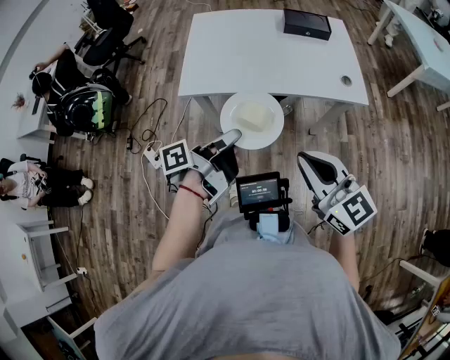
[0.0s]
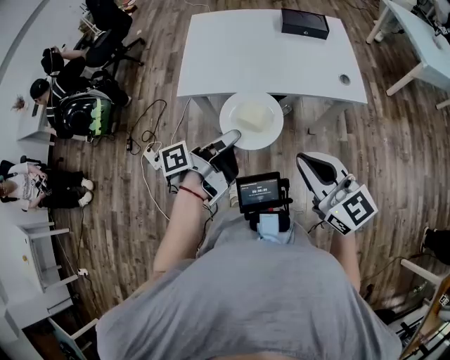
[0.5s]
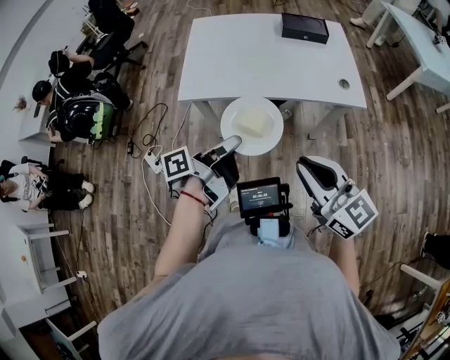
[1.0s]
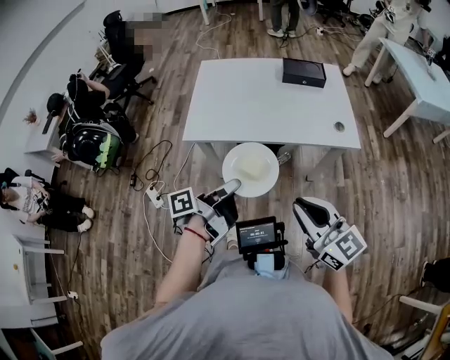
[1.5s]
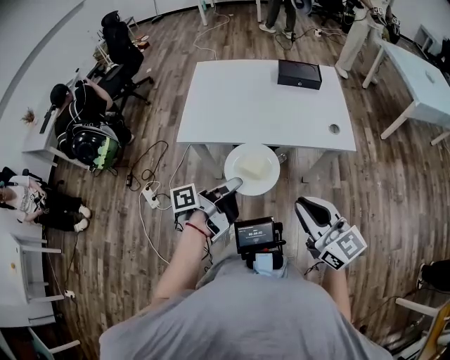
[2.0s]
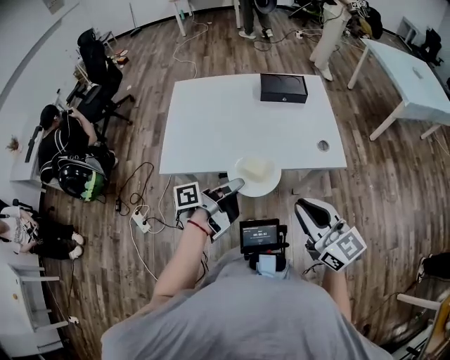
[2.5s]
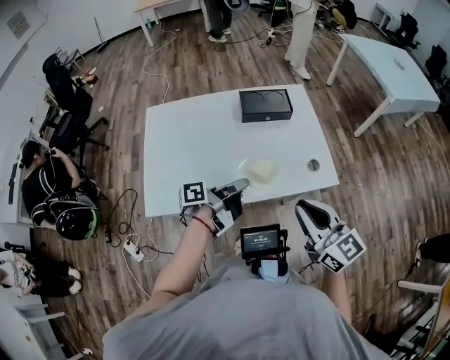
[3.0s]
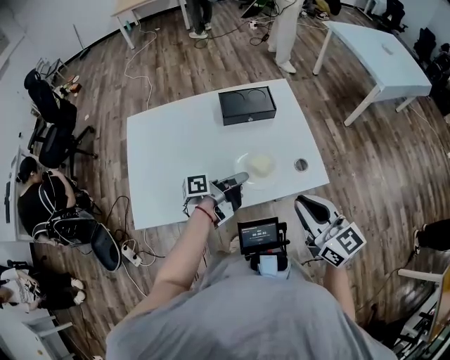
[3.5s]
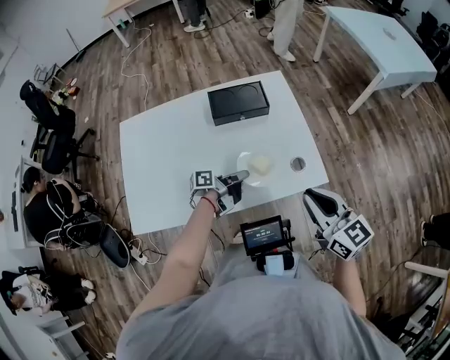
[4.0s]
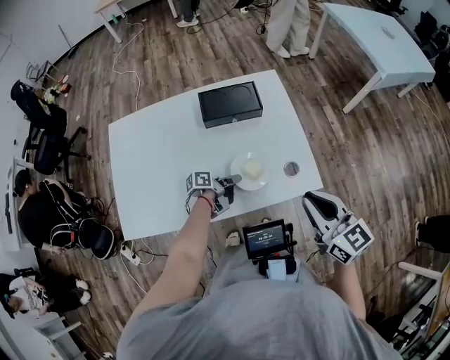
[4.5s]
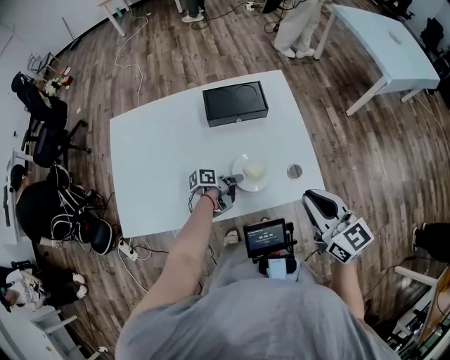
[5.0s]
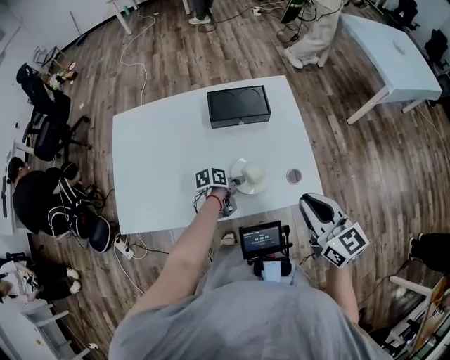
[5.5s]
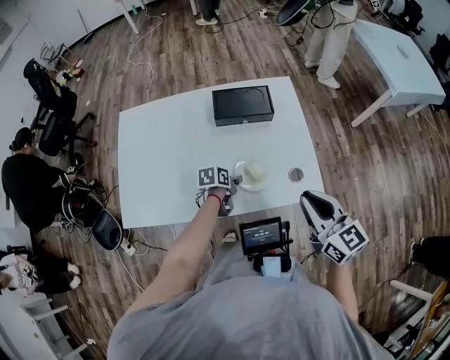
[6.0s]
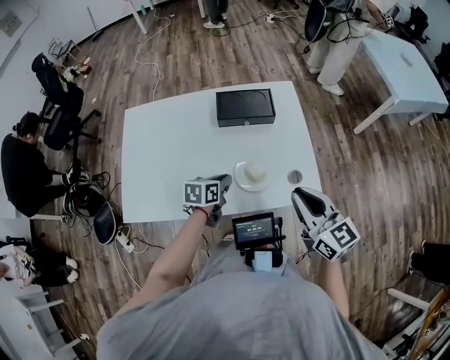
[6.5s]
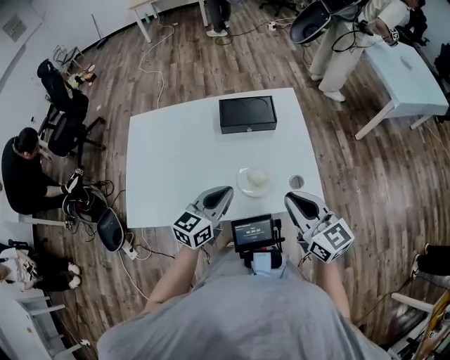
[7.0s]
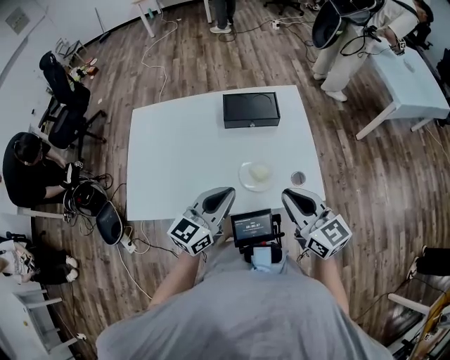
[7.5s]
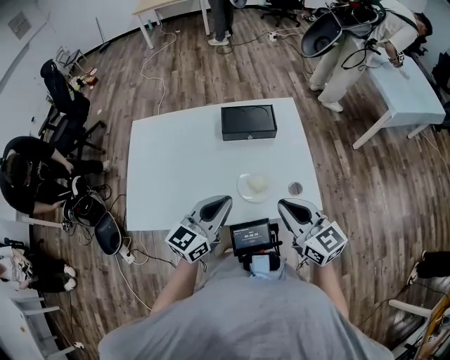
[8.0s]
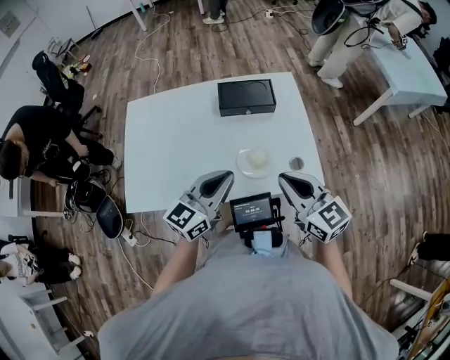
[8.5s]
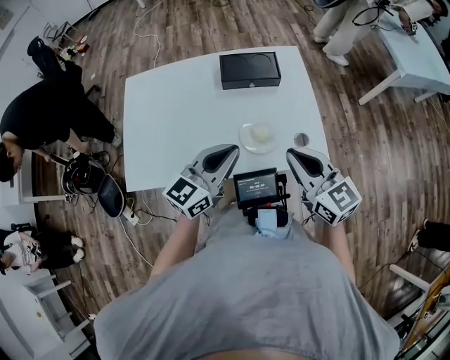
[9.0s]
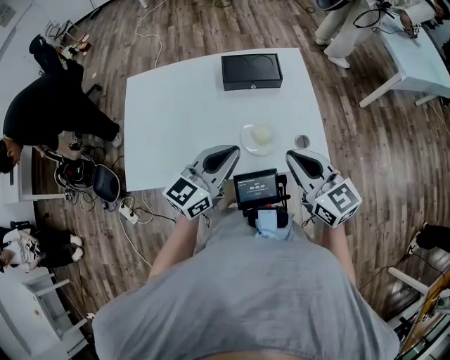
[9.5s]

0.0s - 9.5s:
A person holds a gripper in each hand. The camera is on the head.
0.0s - 2.0s: The right gripper is displaced to the right by some 5 cm.
2.0s - 4.0s: The left gripper moves some 50 cm, and rotates some 30 degrees. The right gripper moves about 35 cm, and changes its angle by some 20 degrees.
4.0s - 5.5s: The left gripper moves downward, roughly 10 cm, tips its fingers downward by some 30 degrees, and opens its fingers.
5.5s - 7.5s: The left gripper heads upward, covering about 30 cm, rolls clockwise, seen from behind, by roughly 60 degrees, and closes up.
7.5s - 9.5s: There are only small adjustments of the grippers.

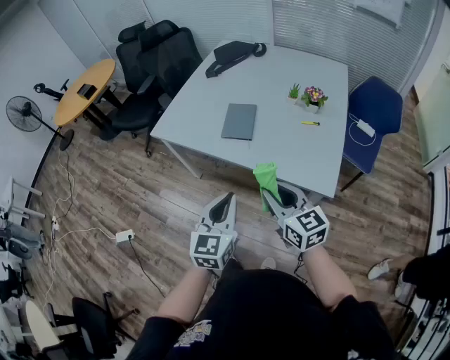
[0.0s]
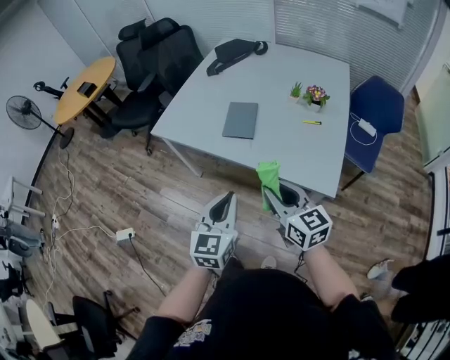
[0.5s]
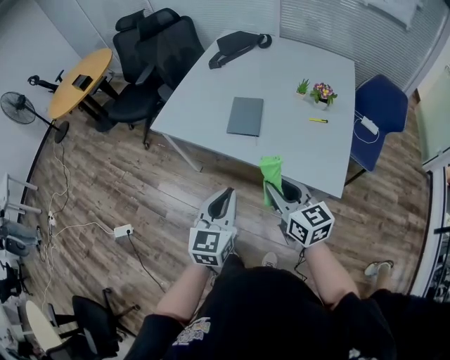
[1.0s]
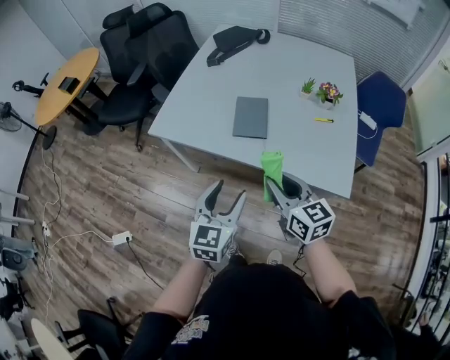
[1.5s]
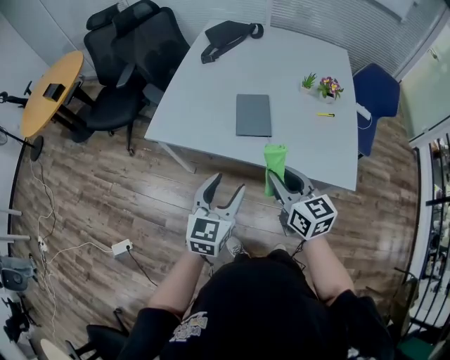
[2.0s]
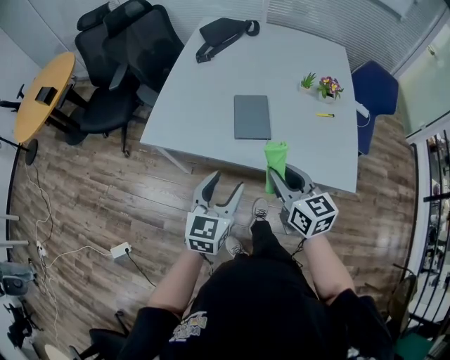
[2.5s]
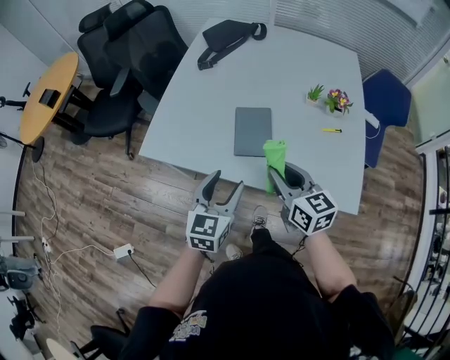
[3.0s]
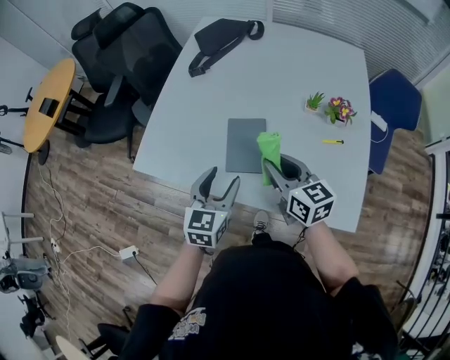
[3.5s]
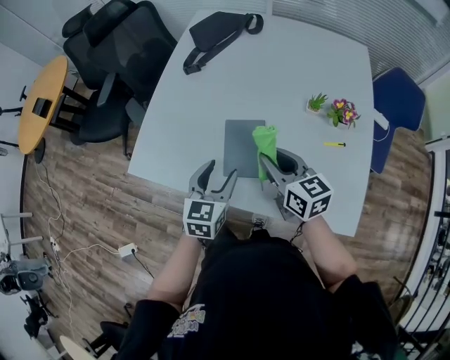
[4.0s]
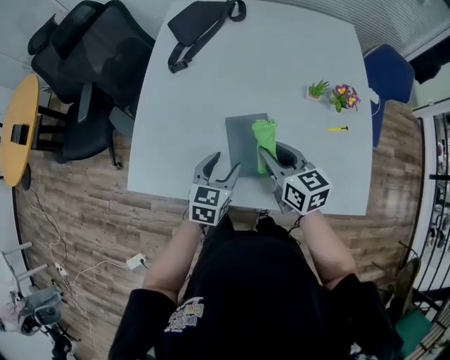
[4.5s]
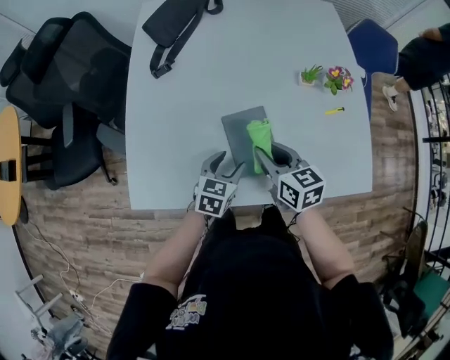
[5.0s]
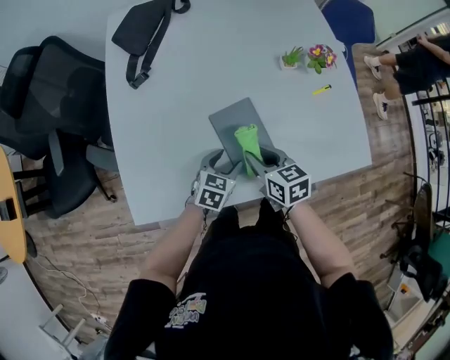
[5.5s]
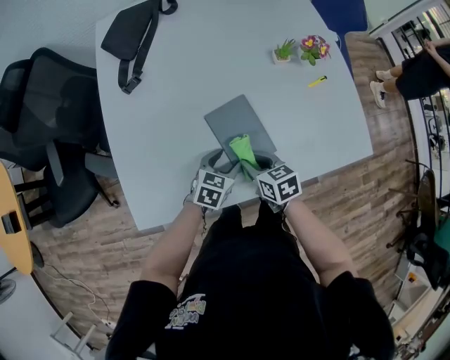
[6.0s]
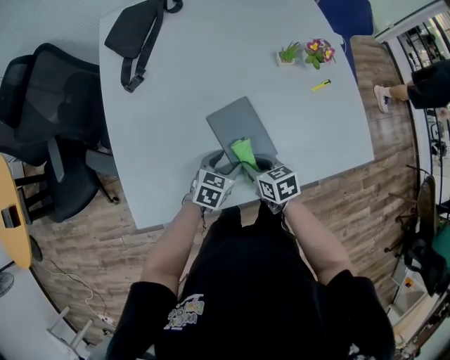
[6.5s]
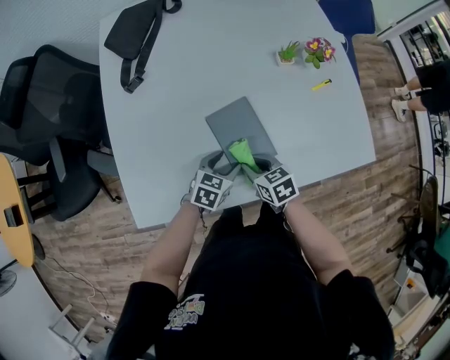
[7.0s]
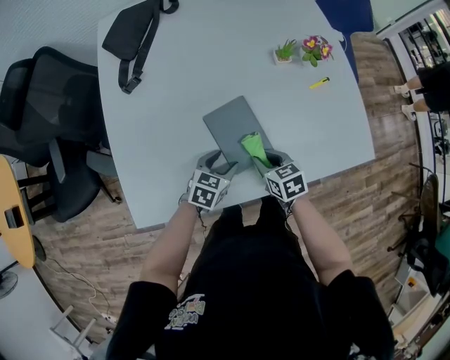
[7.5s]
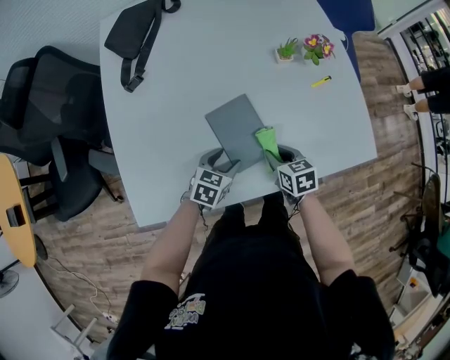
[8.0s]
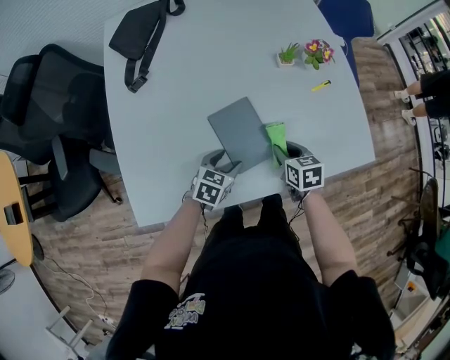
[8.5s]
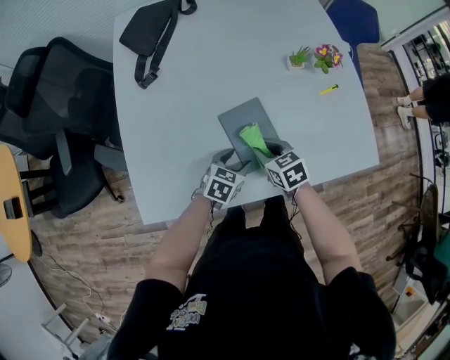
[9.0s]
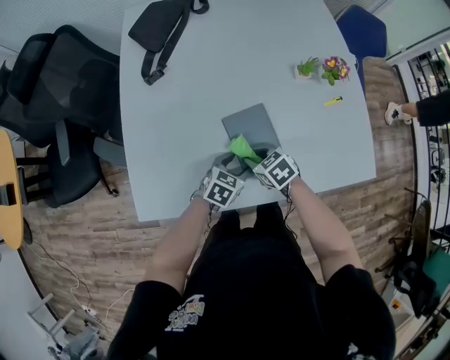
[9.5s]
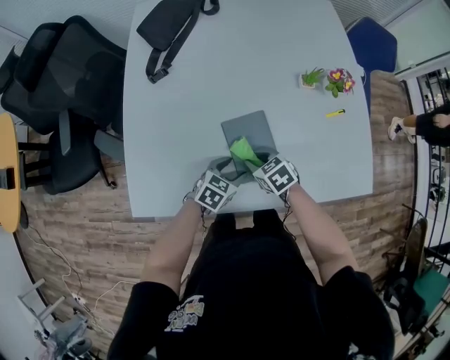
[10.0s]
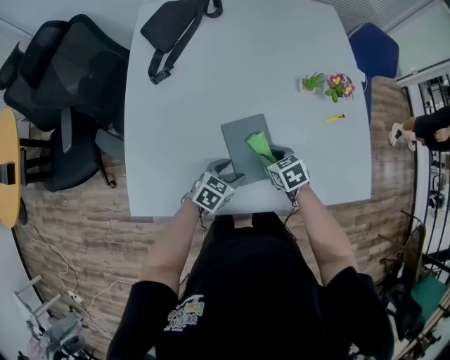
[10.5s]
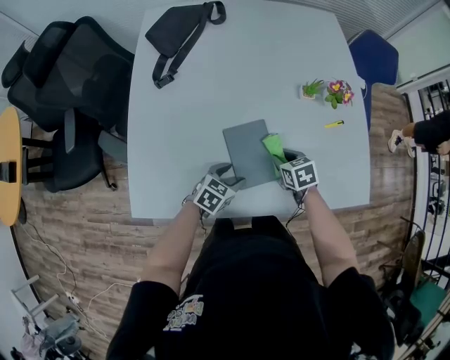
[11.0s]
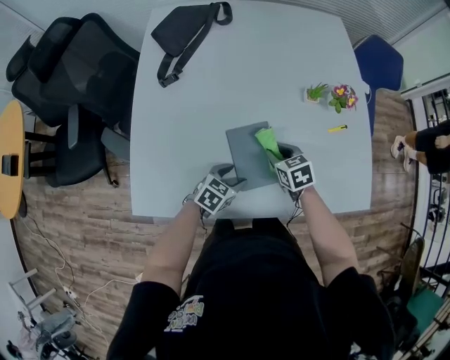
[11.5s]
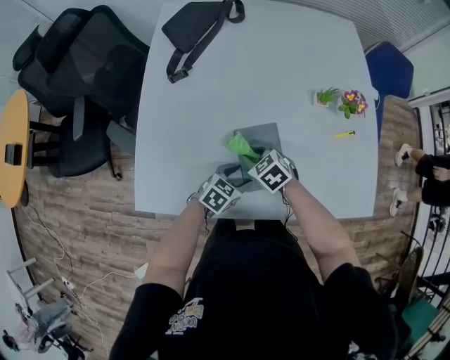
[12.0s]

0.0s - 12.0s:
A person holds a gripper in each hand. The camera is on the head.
0.0s - 2.0s: The grippers both shift forward and to the left by approximately 15 cm. The left gripper opens its fingers.
2.0s - 4.0s: Both grippers move forward, approximately 25 cm.
4.0s - 6.0s: Both grippers travel together downward, some 20 cm. The right gripper changes its angle by some 40 degrees. Meanwhile the left gripper swivels approximately 50 degrees.
6.0s - 8.0s: The right gripper is displaced to the right by roughly 10 cm.
8.0s - 10.0s: The right gripper heads to the left, covering approximately 10 cm, and changes its angle by roughly 30 degrees.
10.0s - 12.0s: The right gripper goes to the right and returns, roughly 10 cm each way.

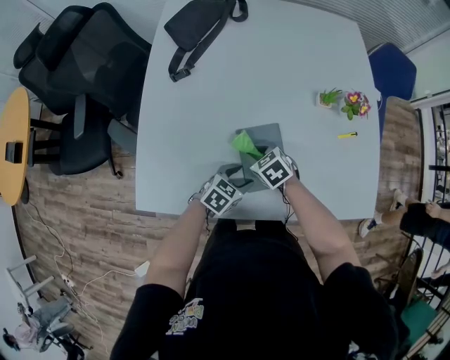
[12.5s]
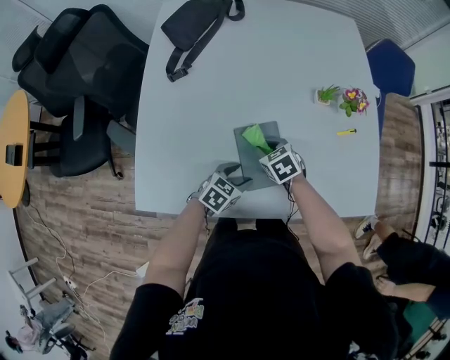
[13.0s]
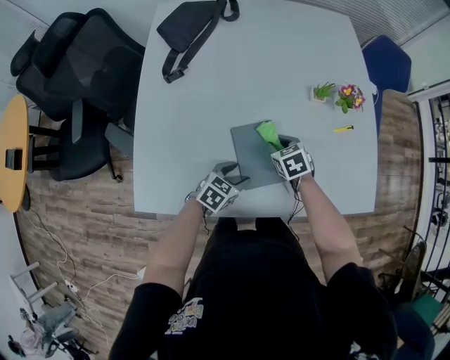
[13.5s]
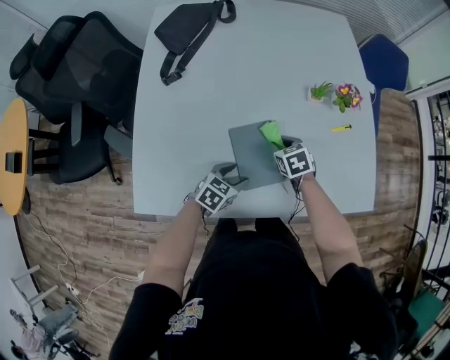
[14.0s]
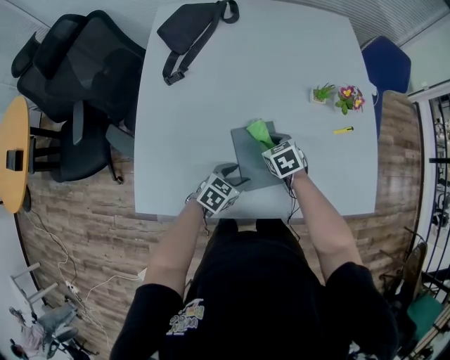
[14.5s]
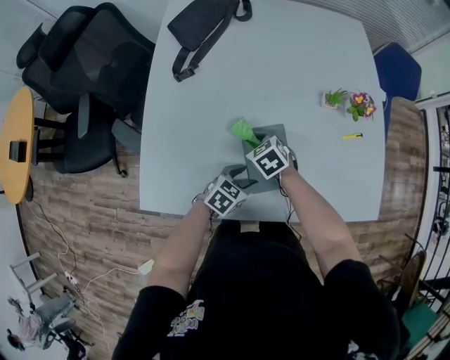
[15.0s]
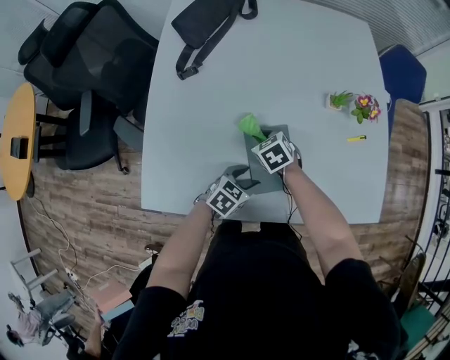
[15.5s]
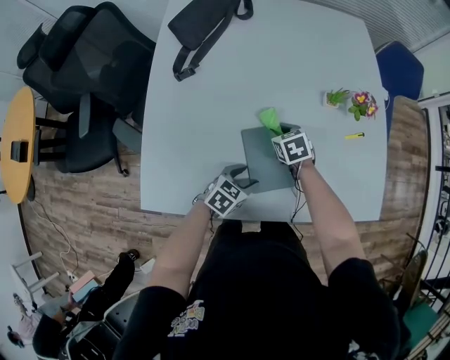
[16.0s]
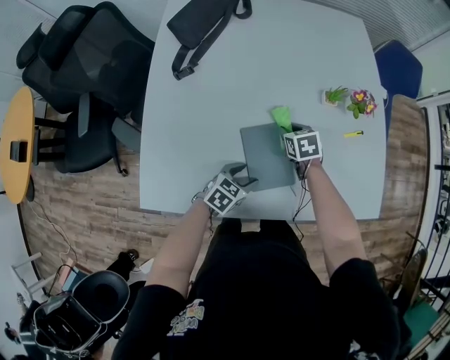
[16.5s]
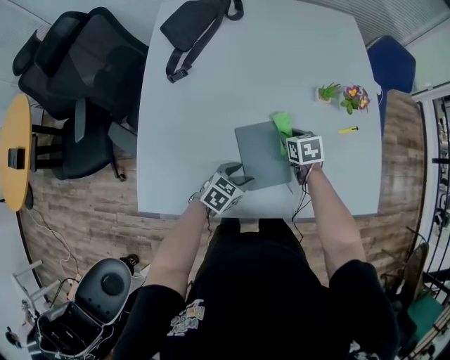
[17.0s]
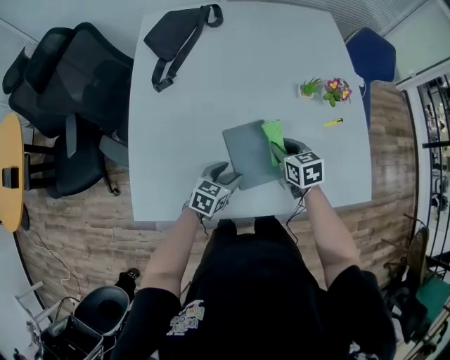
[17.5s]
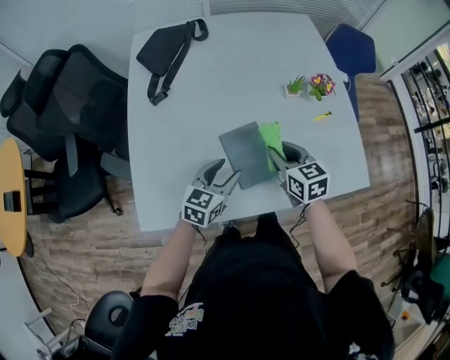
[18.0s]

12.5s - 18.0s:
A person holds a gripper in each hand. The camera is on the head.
12.5s - 14.5s: The right gripper is displaced to the right by roughly 5 cm.
14.5s - 16.0s: The right gripper travels to the left and back again, about 10 cm each way.
16.0s - 18.0s: The left gripper travels upward by about 15 cm, and changes its angle by about 20 degrees. The right gripper travels upward, backward and to the right by roughly 20 cm, and turns by some 30 degrees.
